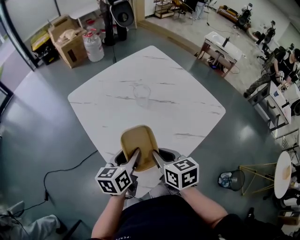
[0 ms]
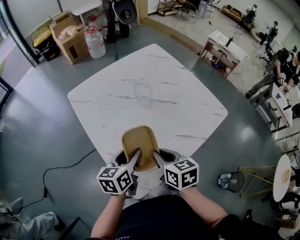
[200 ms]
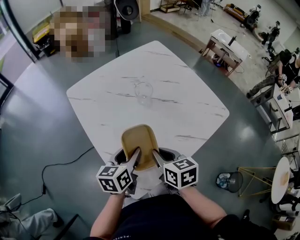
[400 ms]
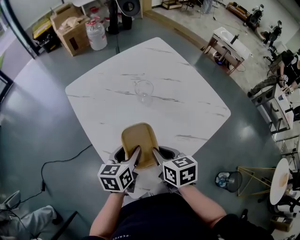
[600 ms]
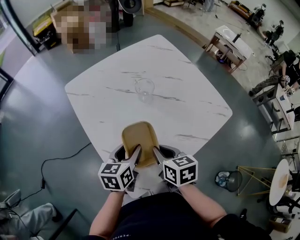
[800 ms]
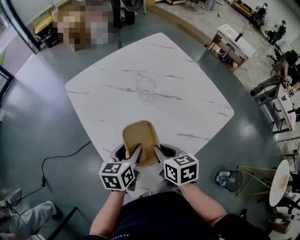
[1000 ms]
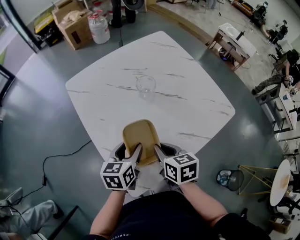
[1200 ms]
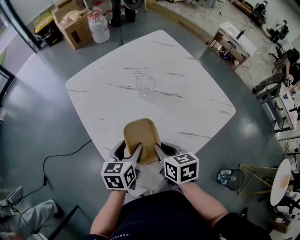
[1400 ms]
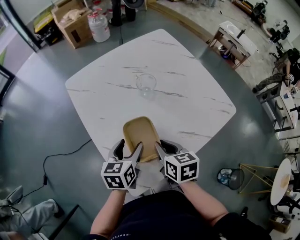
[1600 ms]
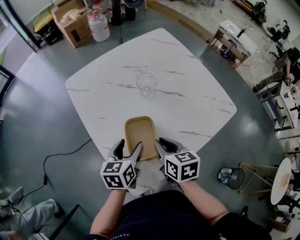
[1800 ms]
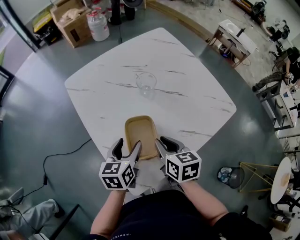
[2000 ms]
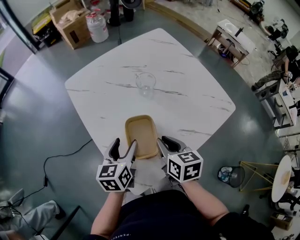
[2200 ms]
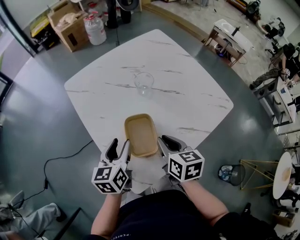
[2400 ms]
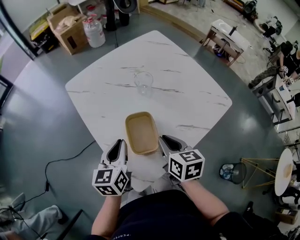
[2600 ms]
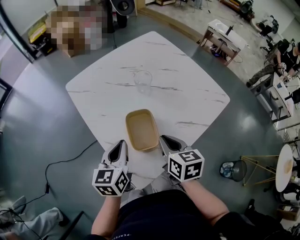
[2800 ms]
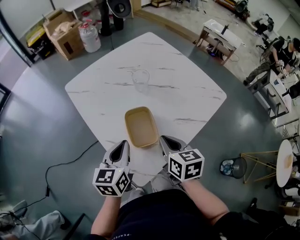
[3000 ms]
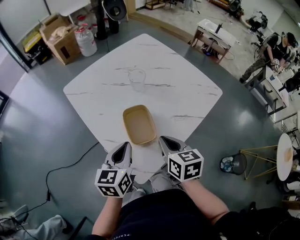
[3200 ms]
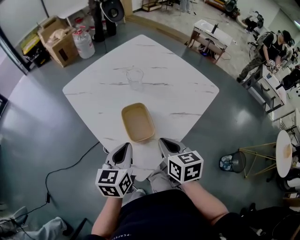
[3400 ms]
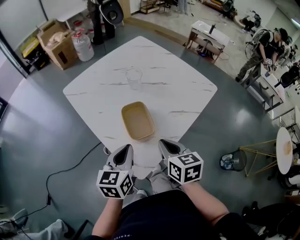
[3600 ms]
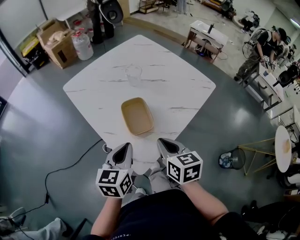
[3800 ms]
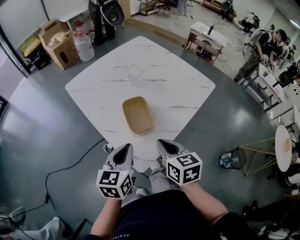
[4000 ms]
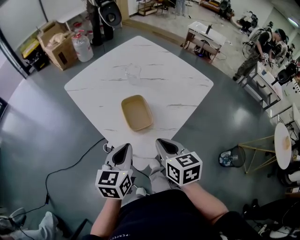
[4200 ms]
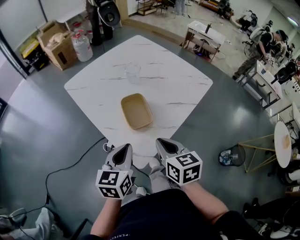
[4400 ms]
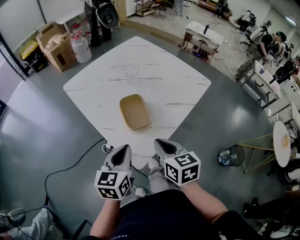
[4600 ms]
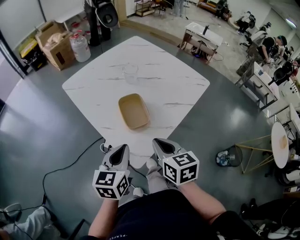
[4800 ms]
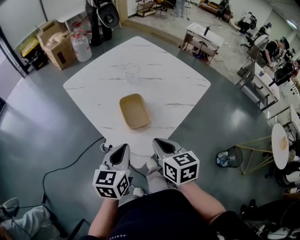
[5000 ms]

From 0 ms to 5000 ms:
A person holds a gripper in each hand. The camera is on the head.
From 0 ms to 1600 ms: The right gripper ends up some 5 cm from where it was; the left gripper changes place by some 5 cm.
From 1600 ms to 3400 ms: The left gripper shifts some 10 cm backward and upward, and closes, while the right gripper goes roughly 10 cm backward.
From 3400 ms to 5000 ms: The grippers both shift backward by approximately 10 cm.

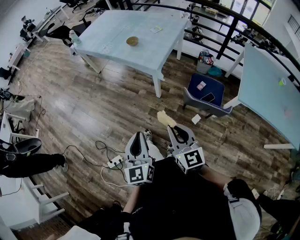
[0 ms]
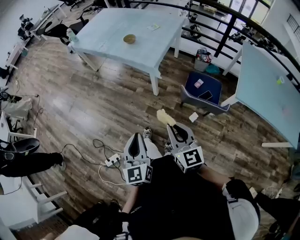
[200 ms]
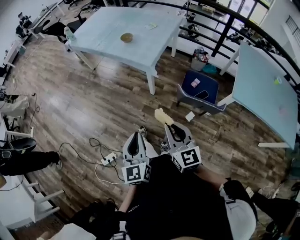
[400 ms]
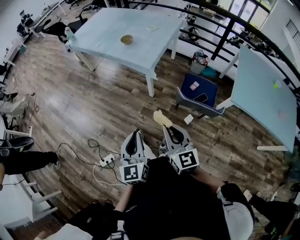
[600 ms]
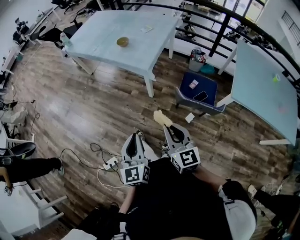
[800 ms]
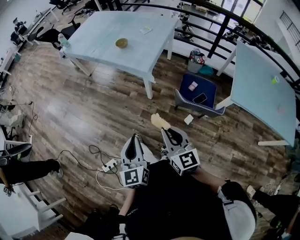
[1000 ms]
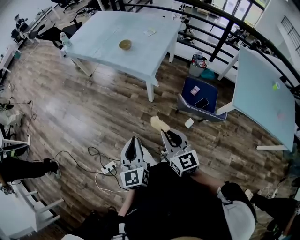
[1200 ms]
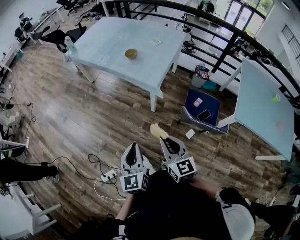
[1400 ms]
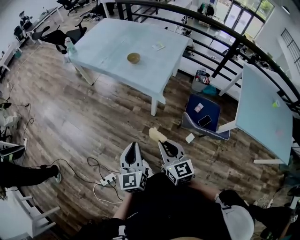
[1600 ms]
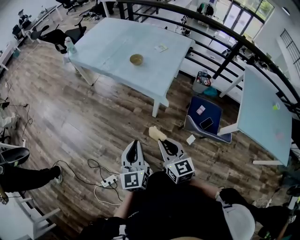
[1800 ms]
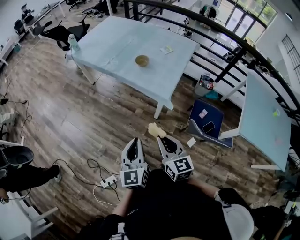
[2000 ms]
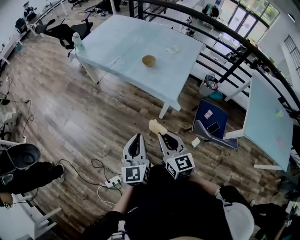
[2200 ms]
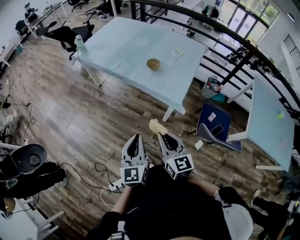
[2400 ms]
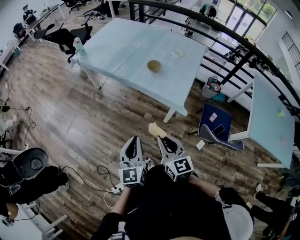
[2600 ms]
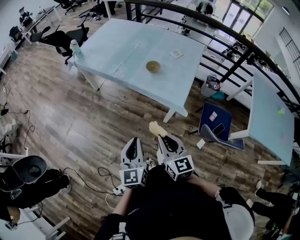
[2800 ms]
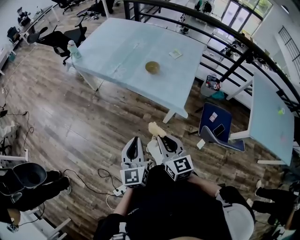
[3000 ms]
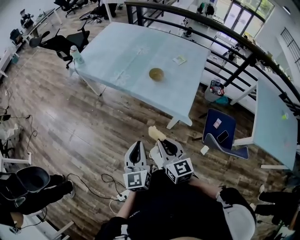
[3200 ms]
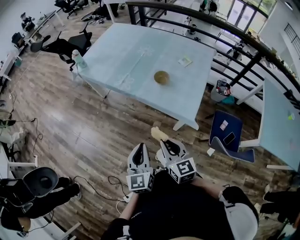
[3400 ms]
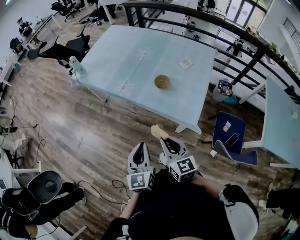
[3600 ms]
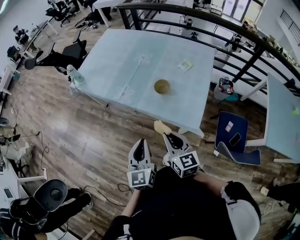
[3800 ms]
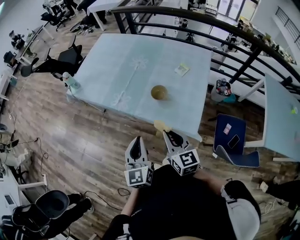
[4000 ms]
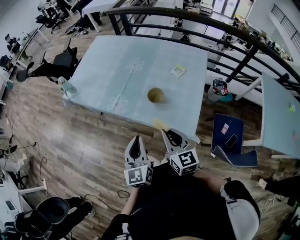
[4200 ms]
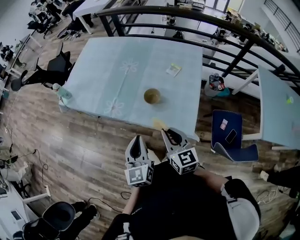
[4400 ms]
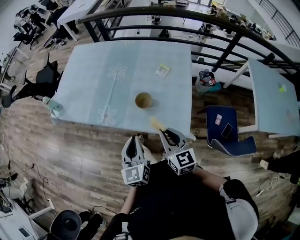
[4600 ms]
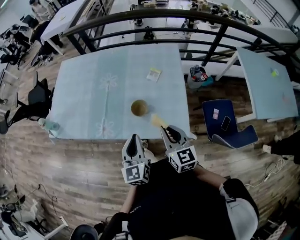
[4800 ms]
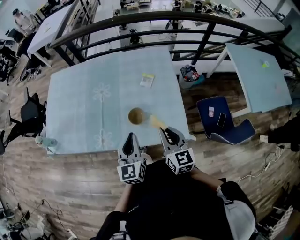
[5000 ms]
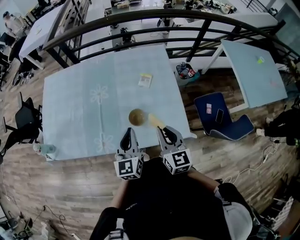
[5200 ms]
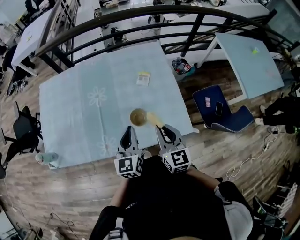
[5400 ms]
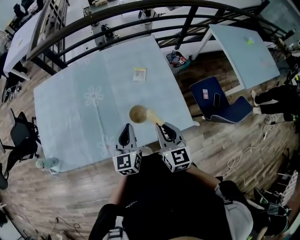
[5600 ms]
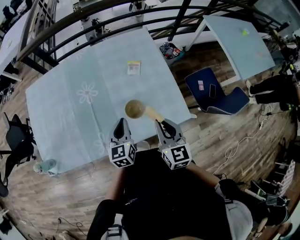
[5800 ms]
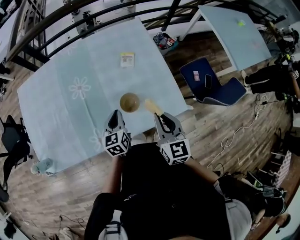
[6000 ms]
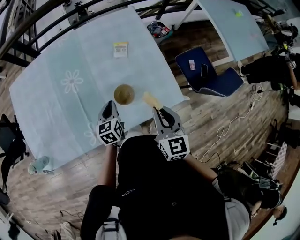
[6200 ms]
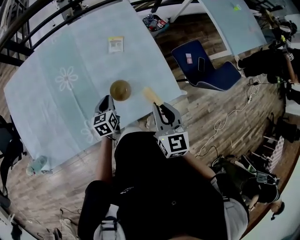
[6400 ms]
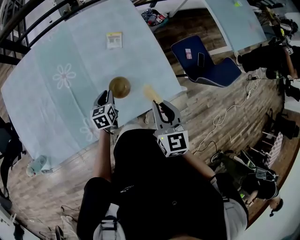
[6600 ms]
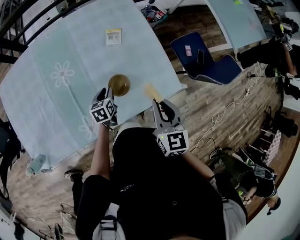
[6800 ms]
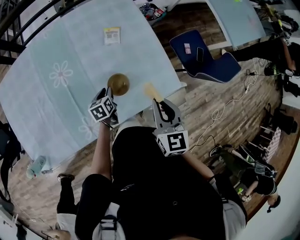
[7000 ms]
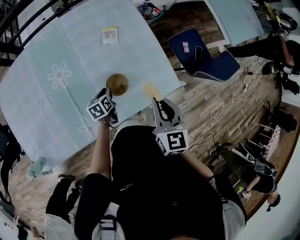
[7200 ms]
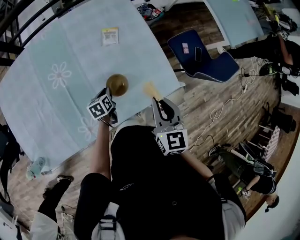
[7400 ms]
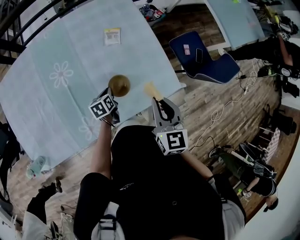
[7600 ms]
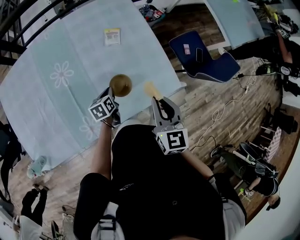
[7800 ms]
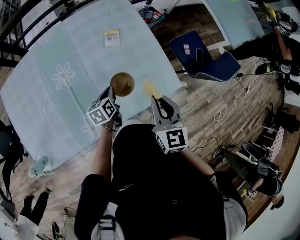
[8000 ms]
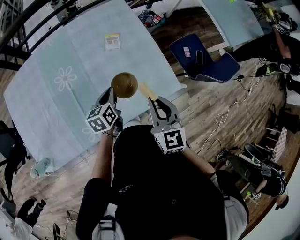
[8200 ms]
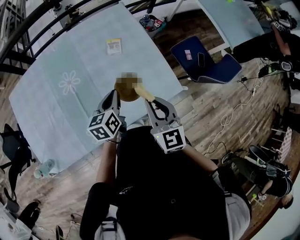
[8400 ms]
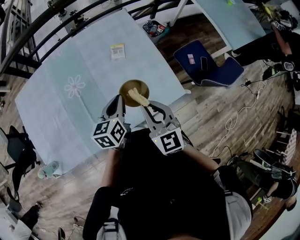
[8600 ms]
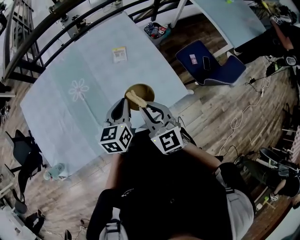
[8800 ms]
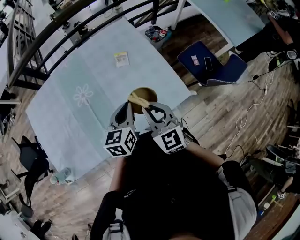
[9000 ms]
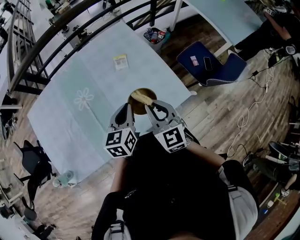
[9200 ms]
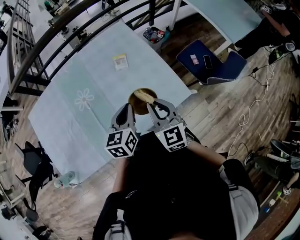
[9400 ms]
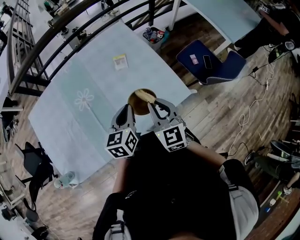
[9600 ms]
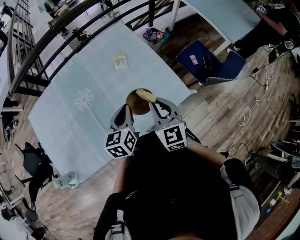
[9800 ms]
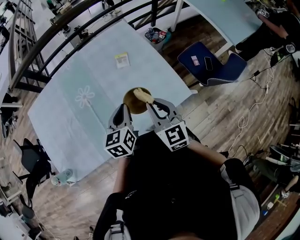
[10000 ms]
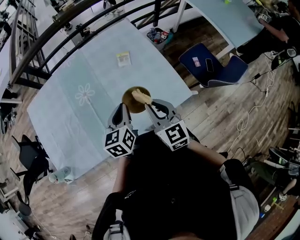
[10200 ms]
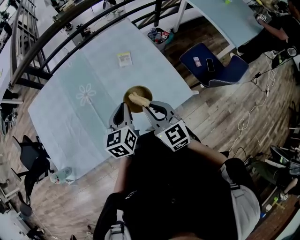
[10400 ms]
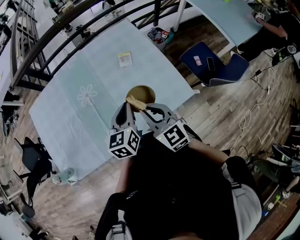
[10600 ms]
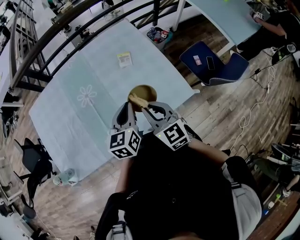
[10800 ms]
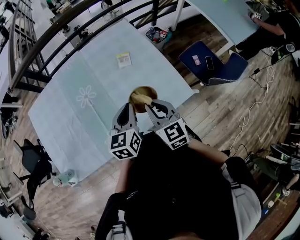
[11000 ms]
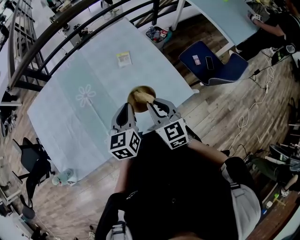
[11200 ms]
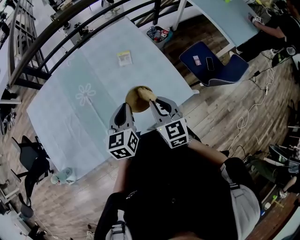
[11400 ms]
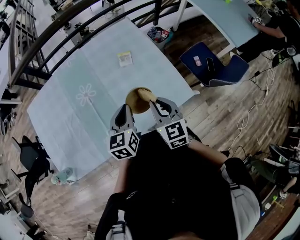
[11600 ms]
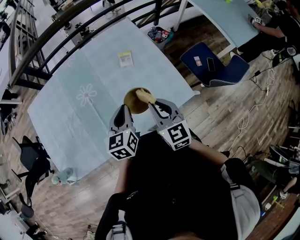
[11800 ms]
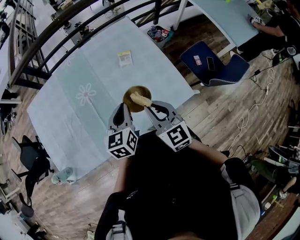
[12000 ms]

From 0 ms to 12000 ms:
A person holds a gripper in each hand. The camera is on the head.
From 0 ms to 1600 ms: The right gripper shifts approximately 15 cm forward and to the left; the left gripper is displaced forward by roughly 15 cm.
From 1600 ms to 3000 ms: Both grippers travel together forward and to the left, roughly 25 cm.
From 3000 ms to 4400 ms: Both grippers travel together forward, approximately 25 cm.
From 4400 ms to 6000 ms: The right gripper moves some 15 cm, and rotates some 50 degrees. The left gripper moves roughly 30 cm, and changes its angle by approximately 40 degrees.
From 6000 ms to 7600 ms: The left gripper is displaced downward by some 15 cm, rotates roughly 30 degrees, and opens and closes again.
From 7600 ms to 9000 ms: The left gripper travels upward by some 25 cm, and rotates some 30 degrees. The right gripper travels to the left by roughly 5 cm, and rotates about 20 degrees.
From 9000 ms to 12000 ms: The grippers stay close to where they were, moving slightly.

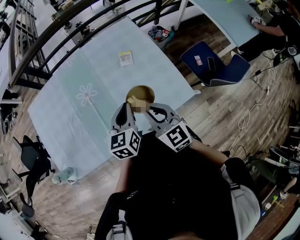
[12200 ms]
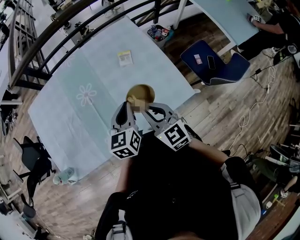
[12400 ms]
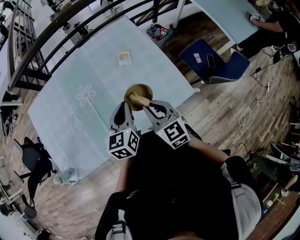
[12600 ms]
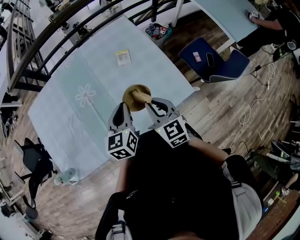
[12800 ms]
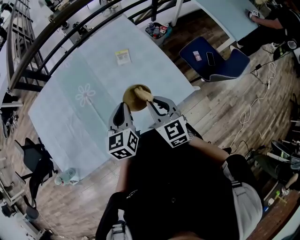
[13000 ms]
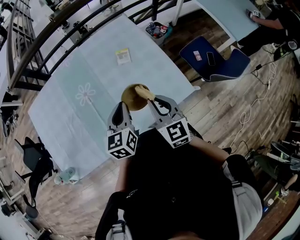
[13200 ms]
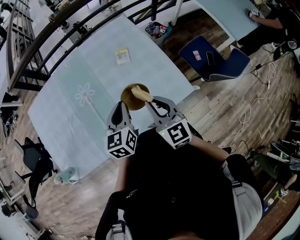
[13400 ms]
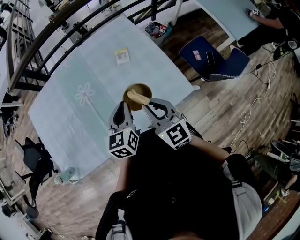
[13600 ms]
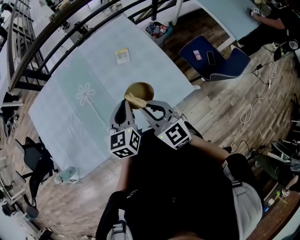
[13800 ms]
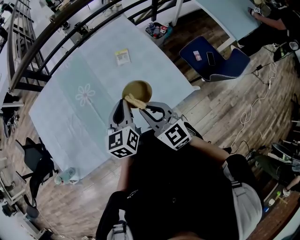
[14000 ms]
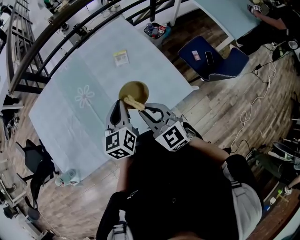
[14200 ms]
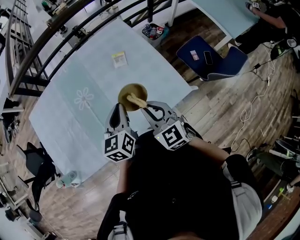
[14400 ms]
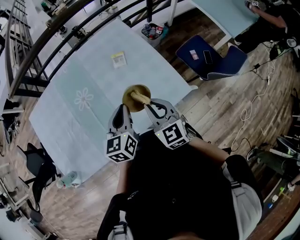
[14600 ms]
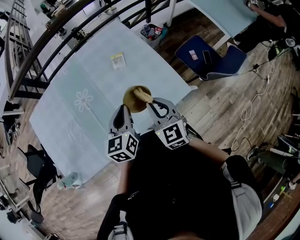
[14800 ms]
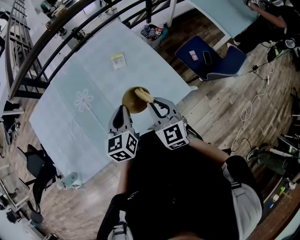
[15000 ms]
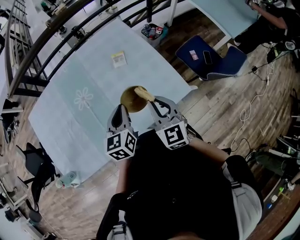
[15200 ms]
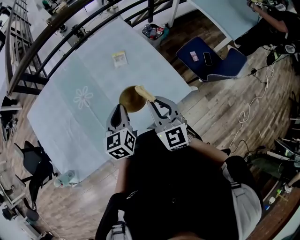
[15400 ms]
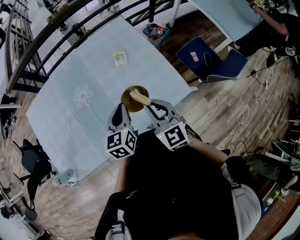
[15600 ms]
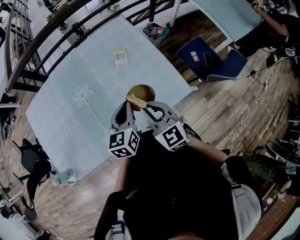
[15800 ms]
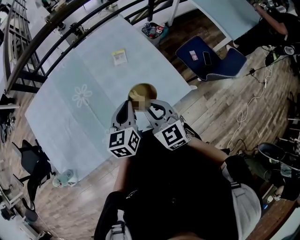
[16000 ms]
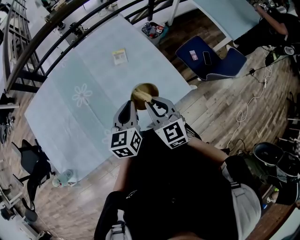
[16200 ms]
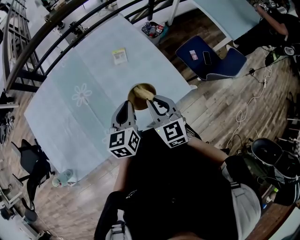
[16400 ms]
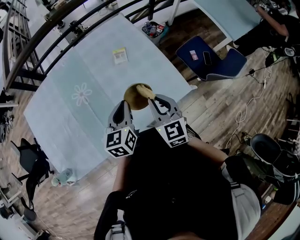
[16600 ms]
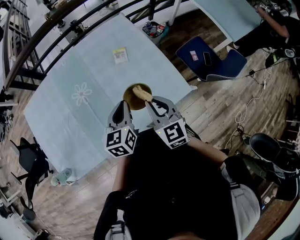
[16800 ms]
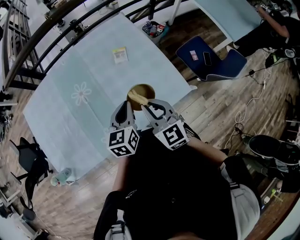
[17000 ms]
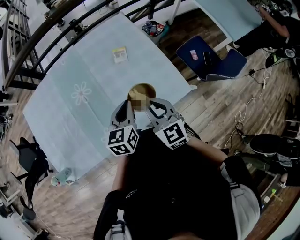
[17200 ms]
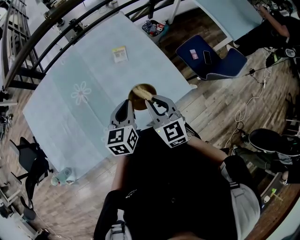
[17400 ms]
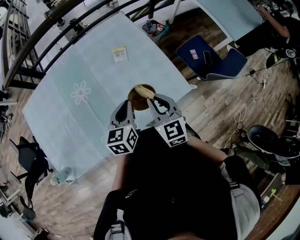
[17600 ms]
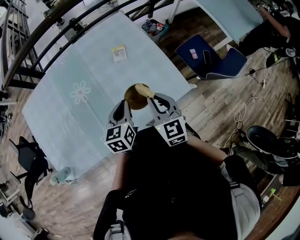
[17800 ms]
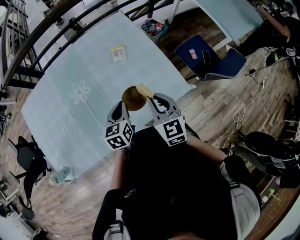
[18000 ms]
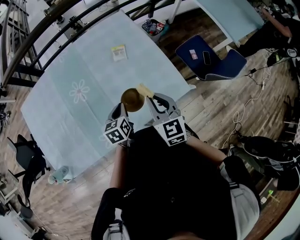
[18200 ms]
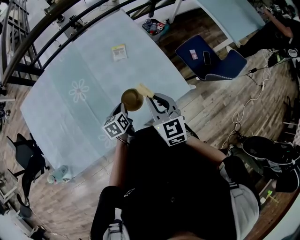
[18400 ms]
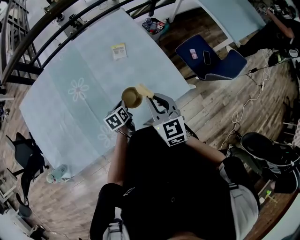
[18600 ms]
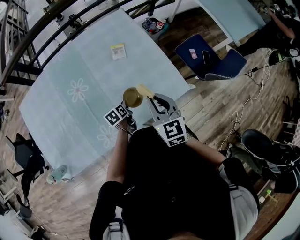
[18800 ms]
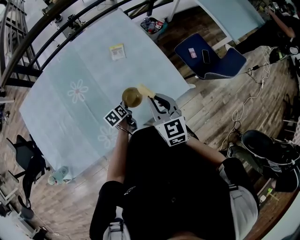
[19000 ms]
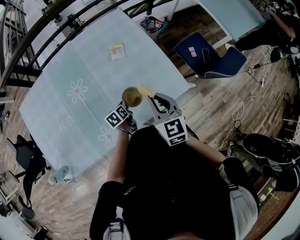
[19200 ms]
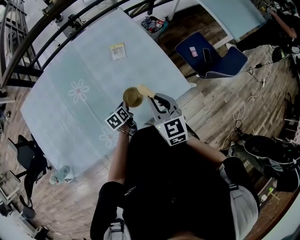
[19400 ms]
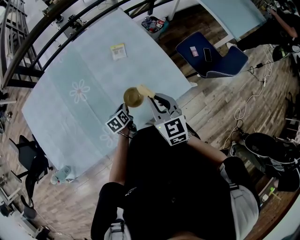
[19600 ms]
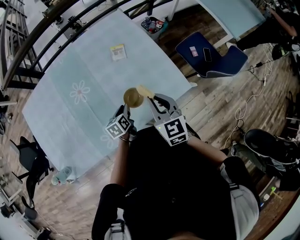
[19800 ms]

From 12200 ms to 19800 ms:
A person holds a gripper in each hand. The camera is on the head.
From 12200 ms to 13800 ms: The grippers stay close to where they were, moving slightly.
From 13800 ms to 15200 ms: The right gripper shifts about 5 cm to the right.
From 15200 ms to 16800 ms: The grippers move only a little.
From 16800 ms to 18200 ms: The left gripper travels downward by some 10 cm.
From 18200 ms to 19800 ms: The left gripper travels downward by roughly 10 cm, and opens up.
